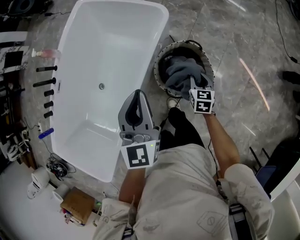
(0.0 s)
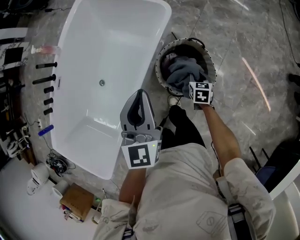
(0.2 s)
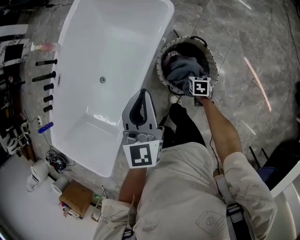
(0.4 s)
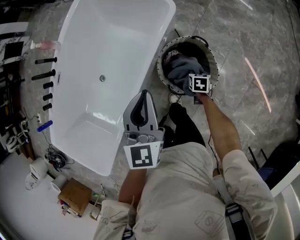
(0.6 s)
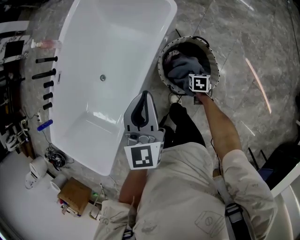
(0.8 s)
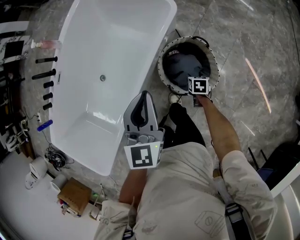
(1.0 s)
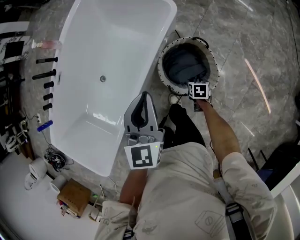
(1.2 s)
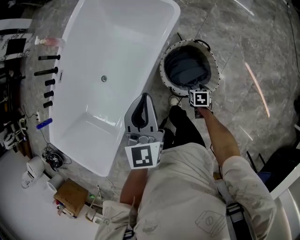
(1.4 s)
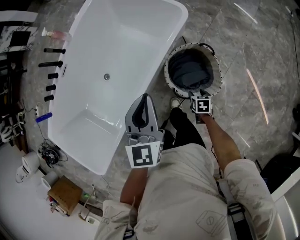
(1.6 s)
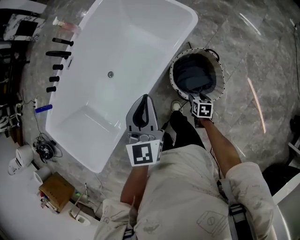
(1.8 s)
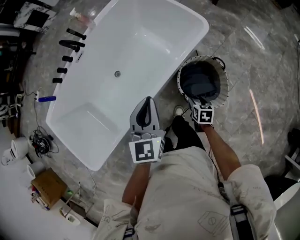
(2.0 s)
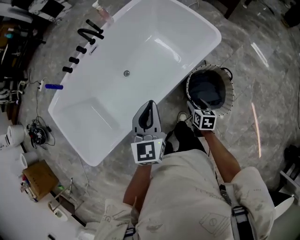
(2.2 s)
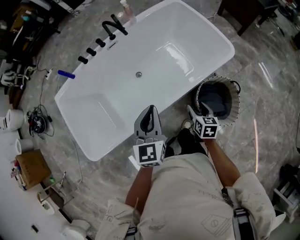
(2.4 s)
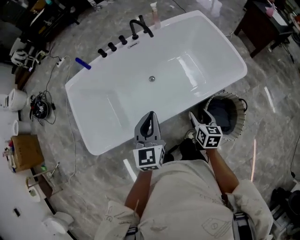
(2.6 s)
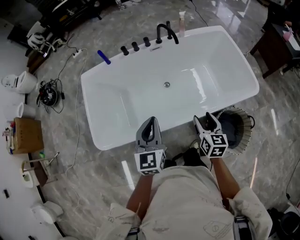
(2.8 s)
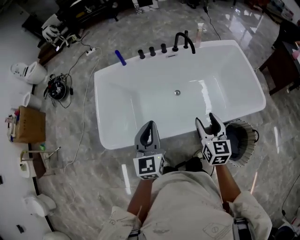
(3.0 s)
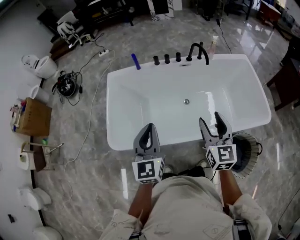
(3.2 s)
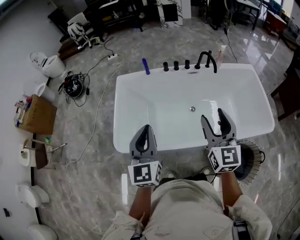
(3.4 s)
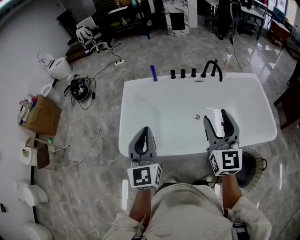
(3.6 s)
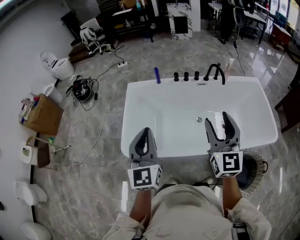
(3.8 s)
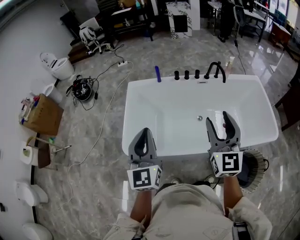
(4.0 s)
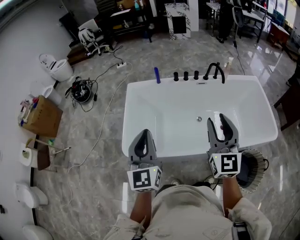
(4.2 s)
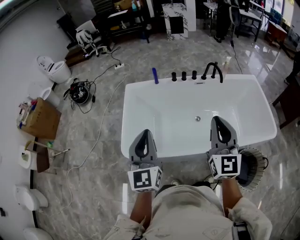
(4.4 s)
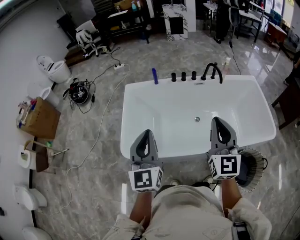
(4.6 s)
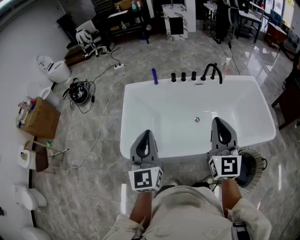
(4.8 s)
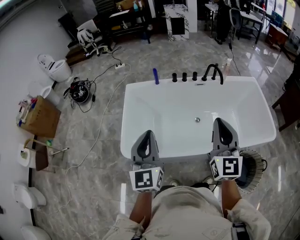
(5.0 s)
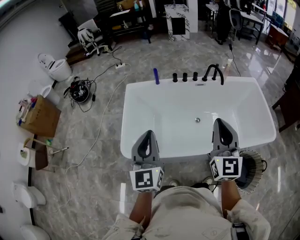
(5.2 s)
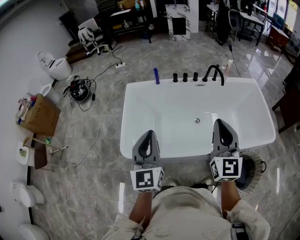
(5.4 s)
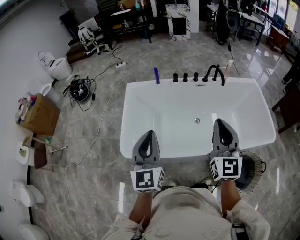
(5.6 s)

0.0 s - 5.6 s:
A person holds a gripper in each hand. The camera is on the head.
0.0 s - 1.4 s: The right gripper shifts approximately 15 cm downward and backward, swivels some 30 degrees, and opens its fingers.
1.4 s - 2.8 s: Both grippers are carried approximately 40 cm. The left gripper turns by approximately 40 degrees. The right gripper angles its fingers upward, by about 40 degrees.
2.8 s - 4.2 s: The right gripper is displaced upward and to the left by some 35 cm, and angles its fingers upward, by roughly 30 degrees. The left gripper goes approximately 30 cm to the left and upward, and swivels some 20 degrees.
4.2 s - 5.6 s: The right gripper closes its fingers.

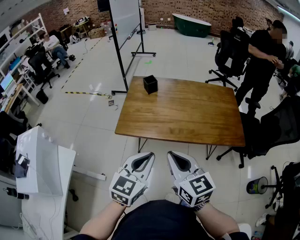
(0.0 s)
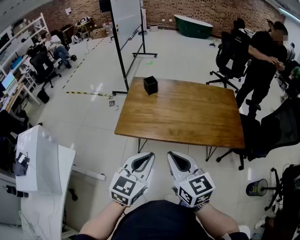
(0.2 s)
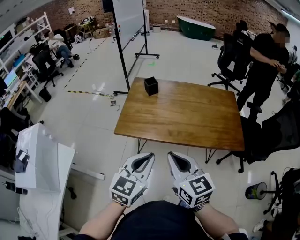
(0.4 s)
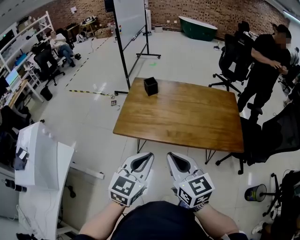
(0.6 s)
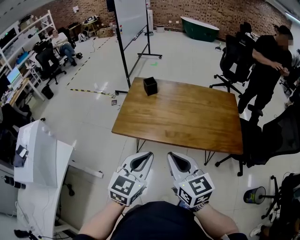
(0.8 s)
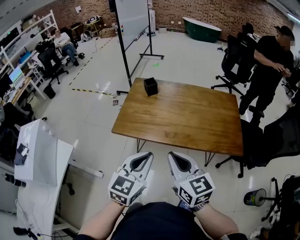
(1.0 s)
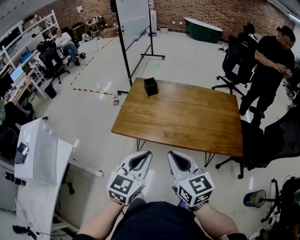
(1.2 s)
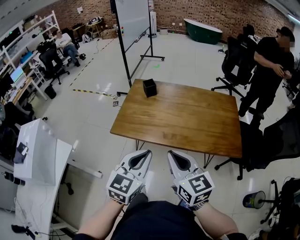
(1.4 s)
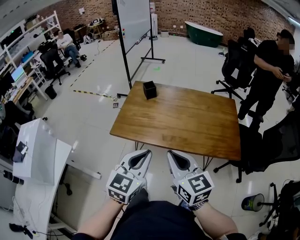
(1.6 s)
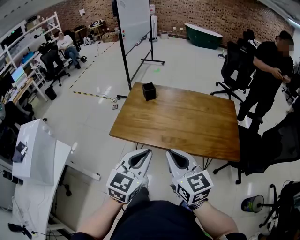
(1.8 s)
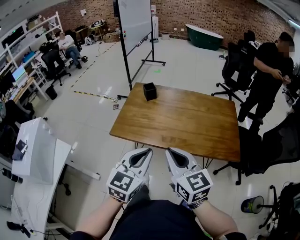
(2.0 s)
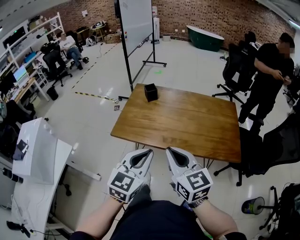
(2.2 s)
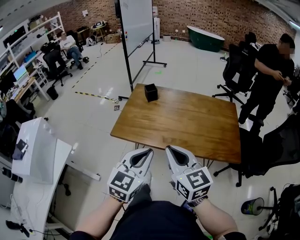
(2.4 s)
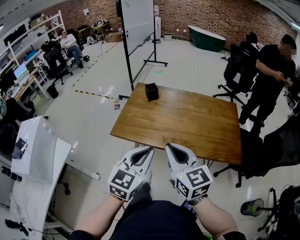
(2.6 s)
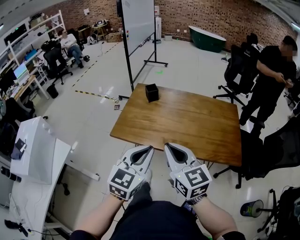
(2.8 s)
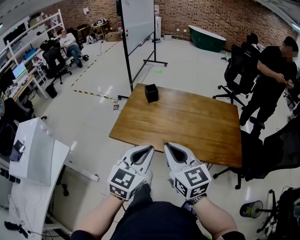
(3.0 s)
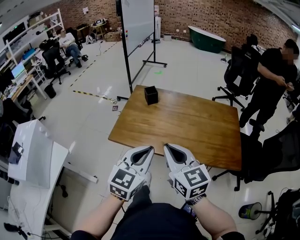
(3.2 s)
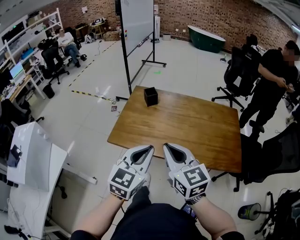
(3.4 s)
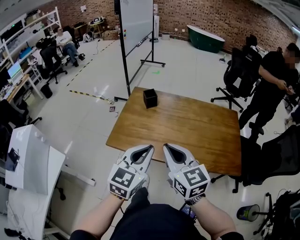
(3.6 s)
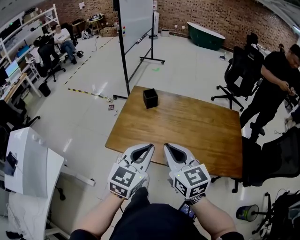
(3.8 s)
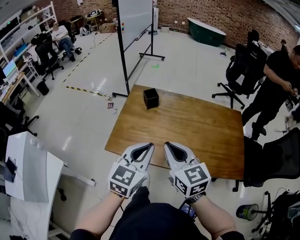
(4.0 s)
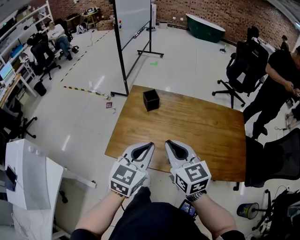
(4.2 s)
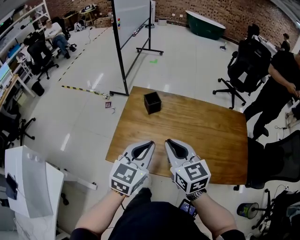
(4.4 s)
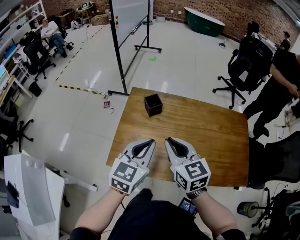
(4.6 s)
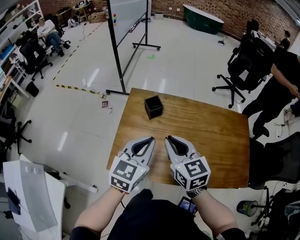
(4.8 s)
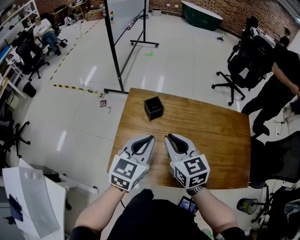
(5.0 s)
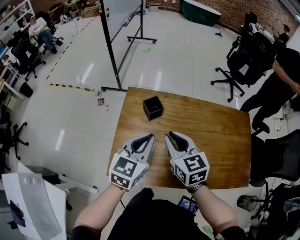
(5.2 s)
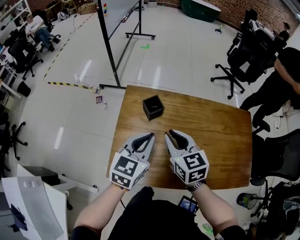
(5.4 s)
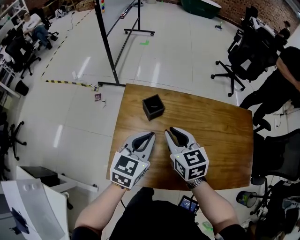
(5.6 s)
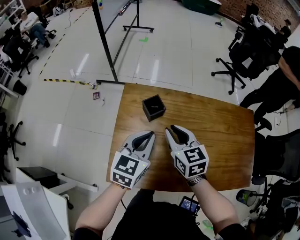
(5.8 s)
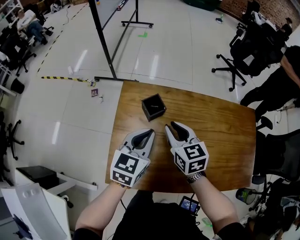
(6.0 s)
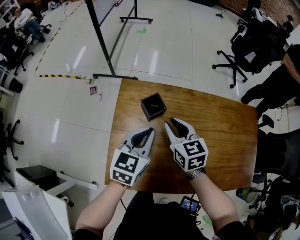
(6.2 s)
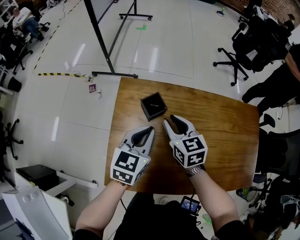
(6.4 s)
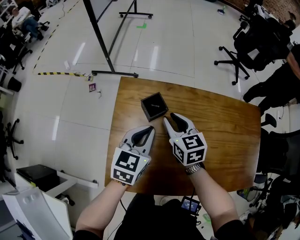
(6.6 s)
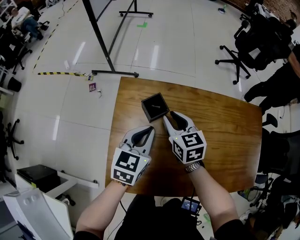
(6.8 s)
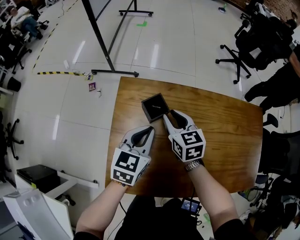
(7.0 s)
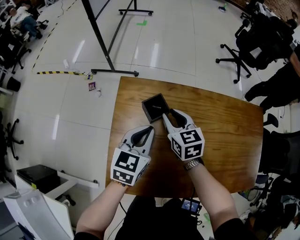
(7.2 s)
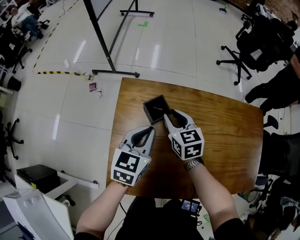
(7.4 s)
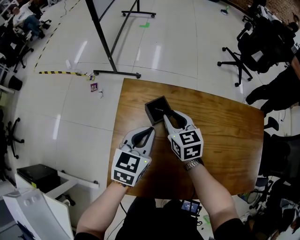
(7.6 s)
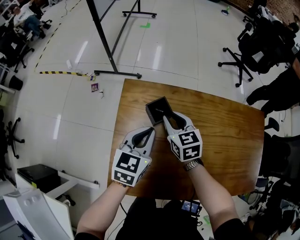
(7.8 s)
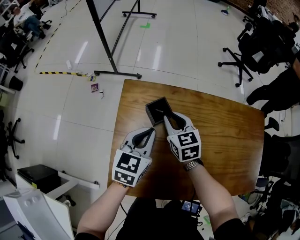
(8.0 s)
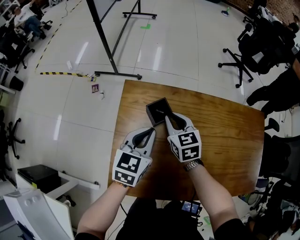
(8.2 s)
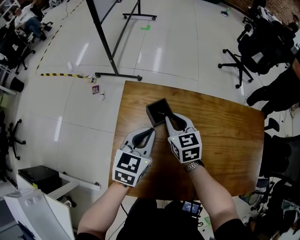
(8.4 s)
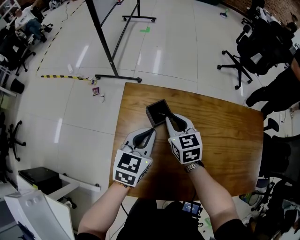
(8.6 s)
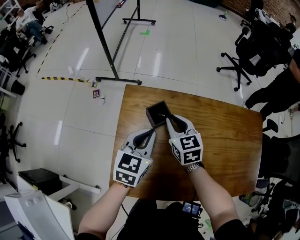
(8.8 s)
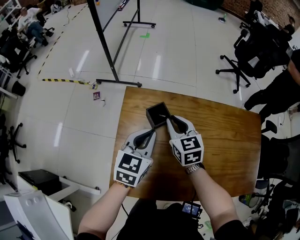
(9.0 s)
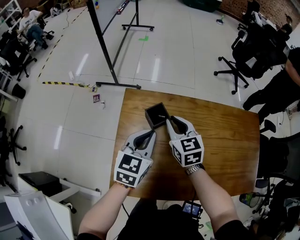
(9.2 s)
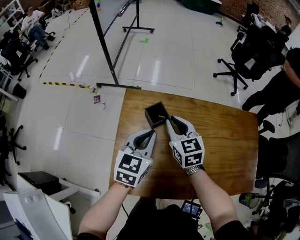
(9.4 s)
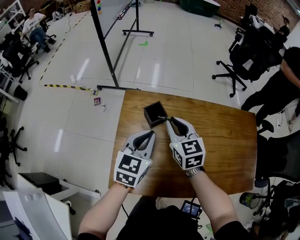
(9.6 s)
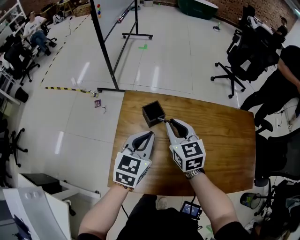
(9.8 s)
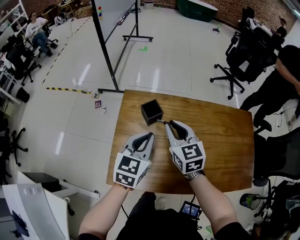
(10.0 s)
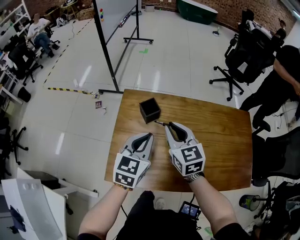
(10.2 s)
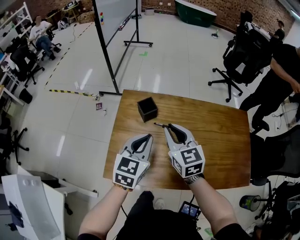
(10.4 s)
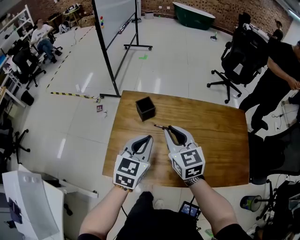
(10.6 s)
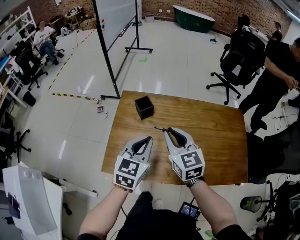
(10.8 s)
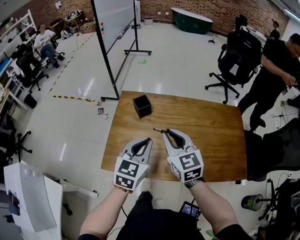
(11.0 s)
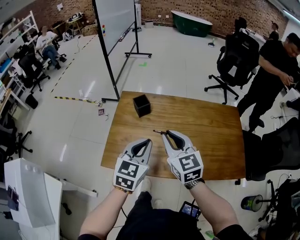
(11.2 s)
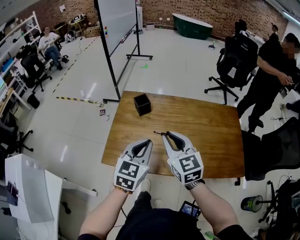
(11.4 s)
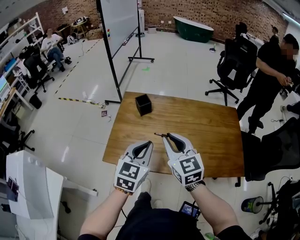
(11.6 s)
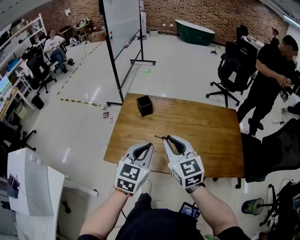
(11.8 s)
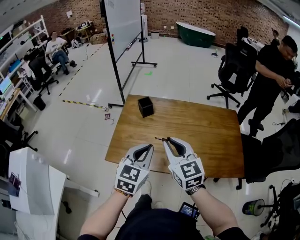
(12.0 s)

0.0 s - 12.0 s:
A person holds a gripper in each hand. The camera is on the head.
0.0 s - 1.6 s: Both grippers move to the right, about 10 cm.
1.6 s - 3.0 s: The right gripper is displaced forward by approximately 5 cm.
3.0 s - 4.4 s: Both grippers travel together forward, approximately 25 cm.
4.4 s - 6.0 s: Both grippers travel together forward and downward, roughly 25 cm.
6.0 s - 7.6 s: The left gripper travels downward and forward by approximately 10 cm. Meanwhile the right gripper moves forward and downward, some 10 cm.
7.6 s - 9.0 s: There are only small adjustments of the grippers.
9.0 s - 10.4 s: The left gripper shifts about 15 cm backward, upward and to the right, while the right gripper is displaced backward and upward by approximately 20 cm.
10.4 s - 12.0 s: Both grippers move backward, roughly 20 cm.

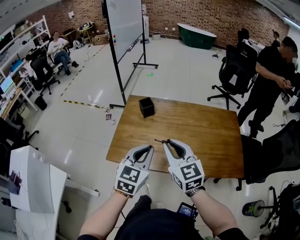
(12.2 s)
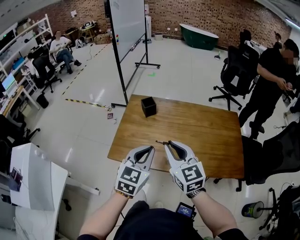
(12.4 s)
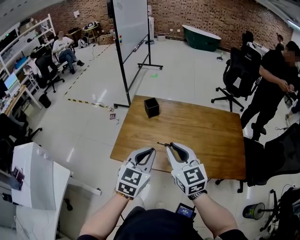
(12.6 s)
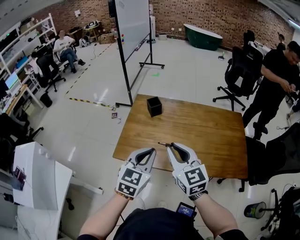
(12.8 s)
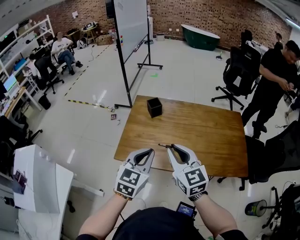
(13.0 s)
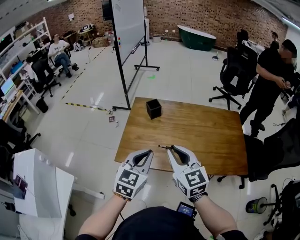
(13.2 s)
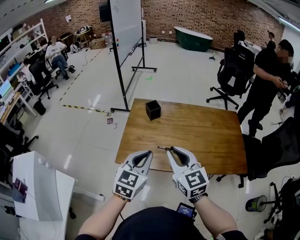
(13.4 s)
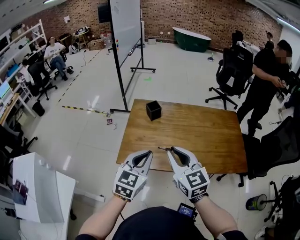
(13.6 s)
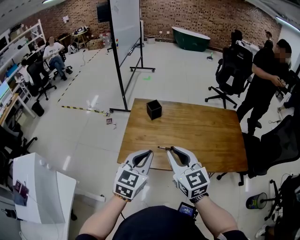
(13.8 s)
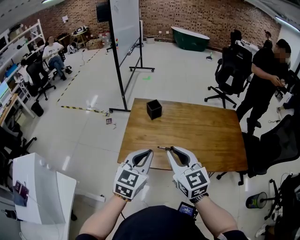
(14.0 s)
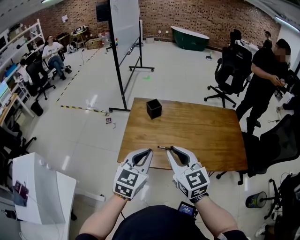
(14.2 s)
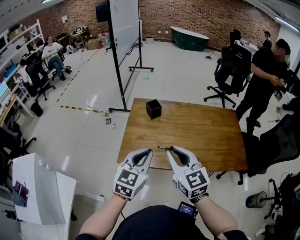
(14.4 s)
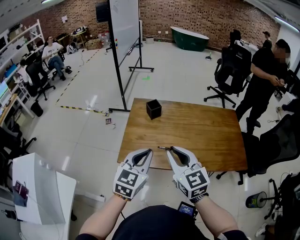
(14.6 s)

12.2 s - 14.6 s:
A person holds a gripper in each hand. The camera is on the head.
12.2 s - 13.4 s: The grippers both shift to the left by roughly 5 cm.
13.4 s - 14.6 s: The grippers stay close to where they were, moving slightly.

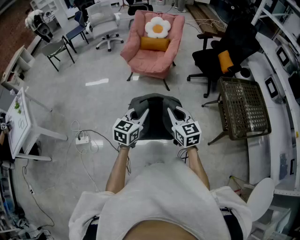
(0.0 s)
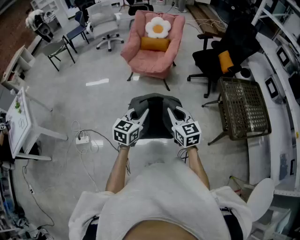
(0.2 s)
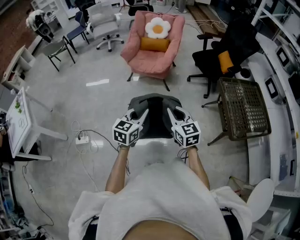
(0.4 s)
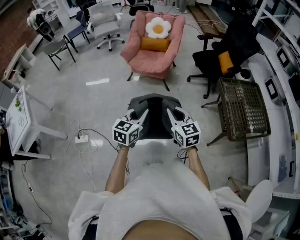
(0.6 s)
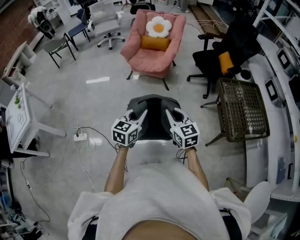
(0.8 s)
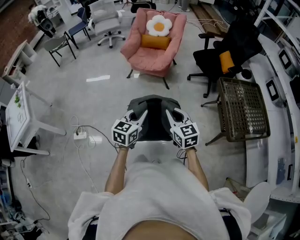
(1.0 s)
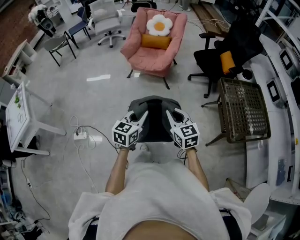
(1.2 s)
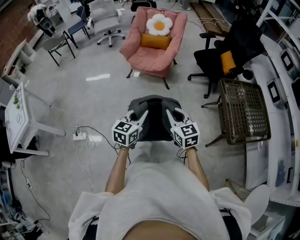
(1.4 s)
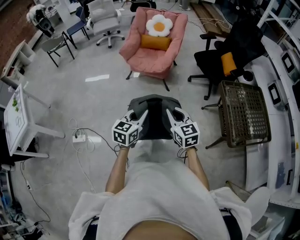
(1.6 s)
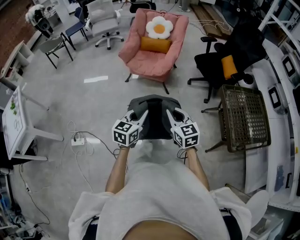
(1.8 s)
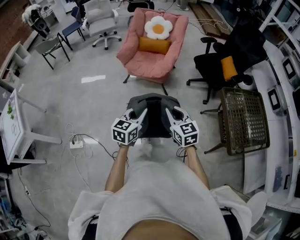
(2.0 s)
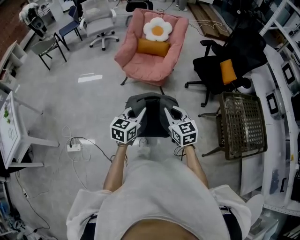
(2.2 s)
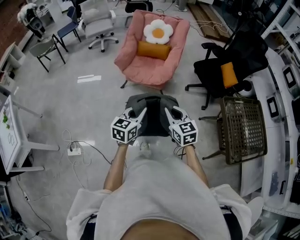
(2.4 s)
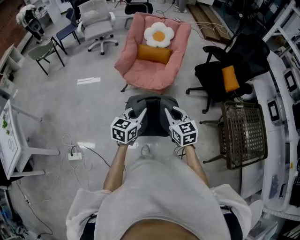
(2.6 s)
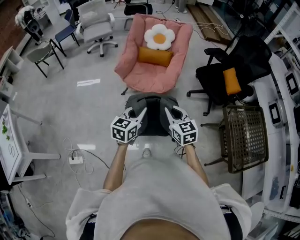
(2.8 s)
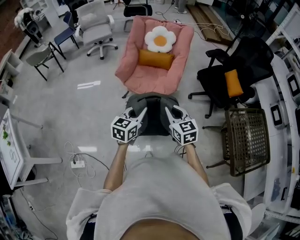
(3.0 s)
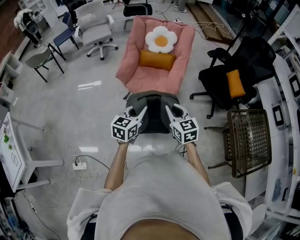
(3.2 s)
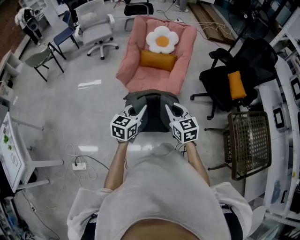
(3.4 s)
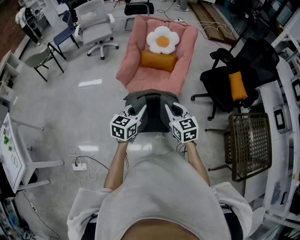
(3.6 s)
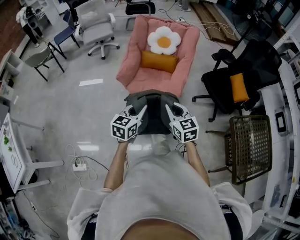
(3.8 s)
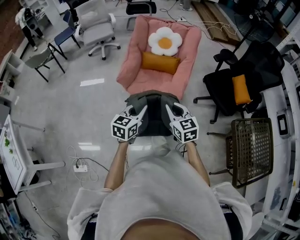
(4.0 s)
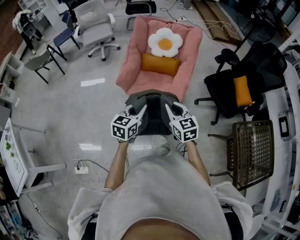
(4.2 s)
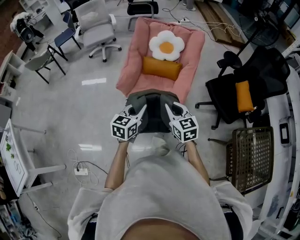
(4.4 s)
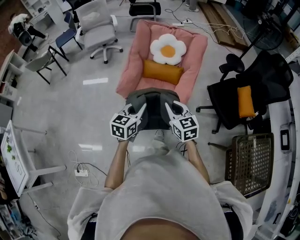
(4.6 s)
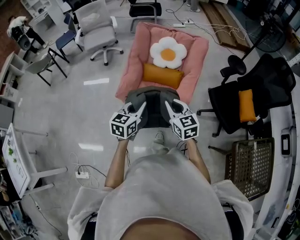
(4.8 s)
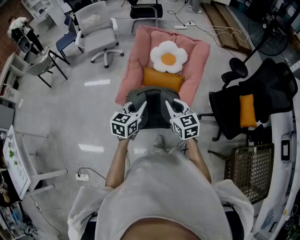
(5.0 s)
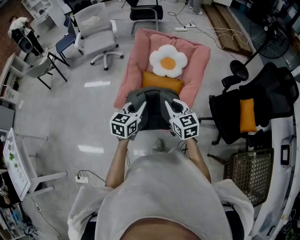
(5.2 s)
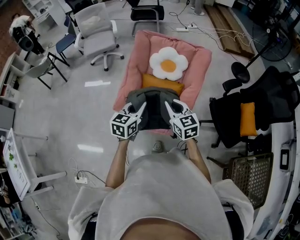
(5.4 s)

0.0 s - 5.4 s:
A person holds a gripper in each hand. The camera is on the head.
0.0 s - 1.4 s: The grippers make only small movements.
1.4 s - 2.8 s: The two grippers go some 35 cm forward.
2.8 s - 4.0 s: Both grippers move forward, some 15 cm.
4.0 s - 5.4 s: Both grippers travel together forward, roughly 30 cm.
